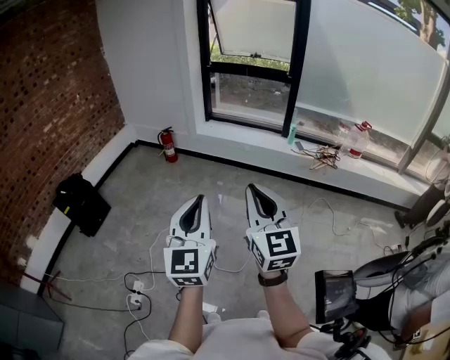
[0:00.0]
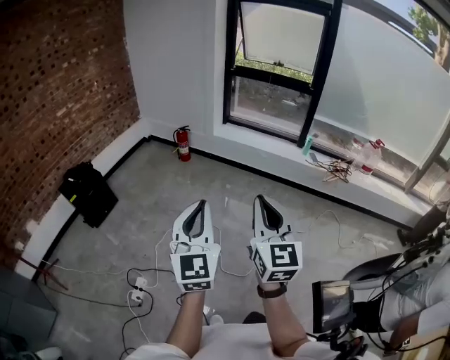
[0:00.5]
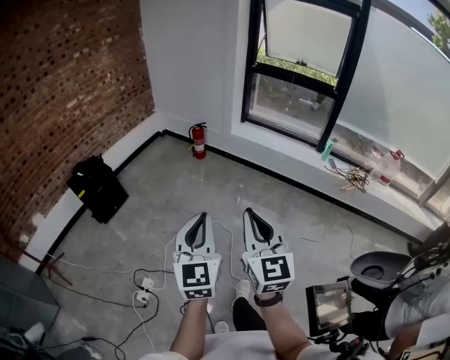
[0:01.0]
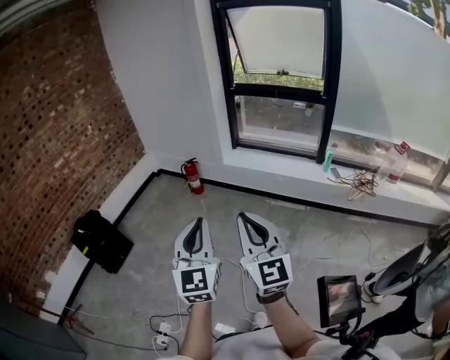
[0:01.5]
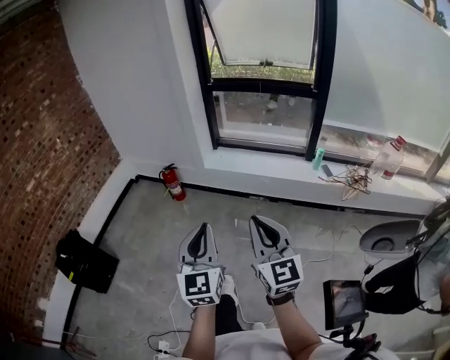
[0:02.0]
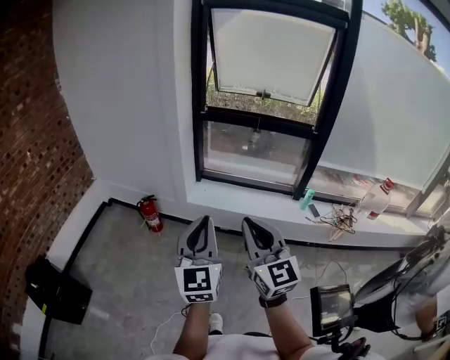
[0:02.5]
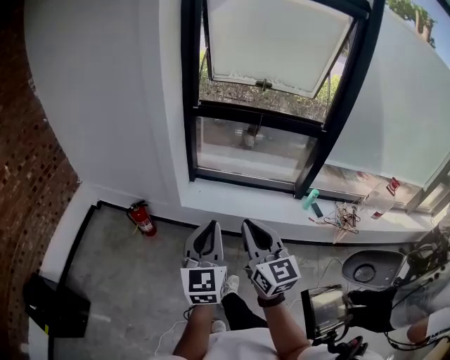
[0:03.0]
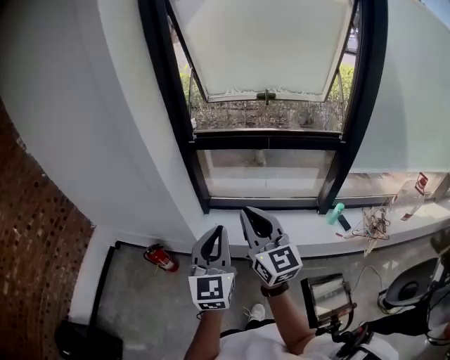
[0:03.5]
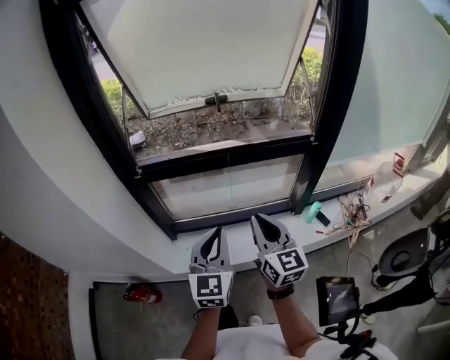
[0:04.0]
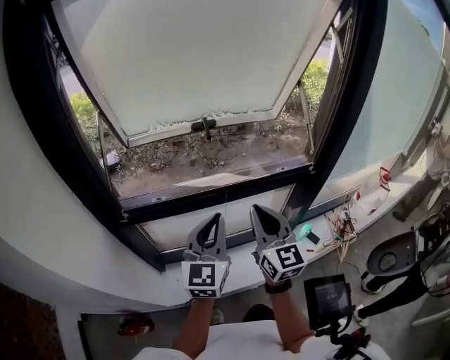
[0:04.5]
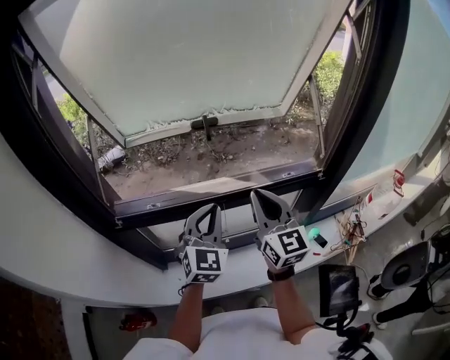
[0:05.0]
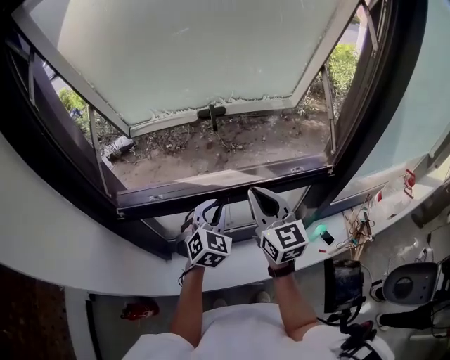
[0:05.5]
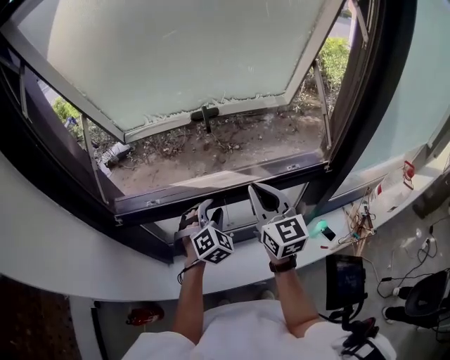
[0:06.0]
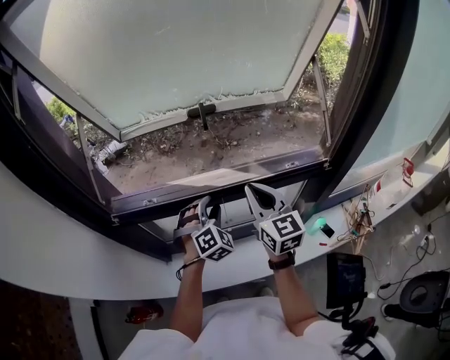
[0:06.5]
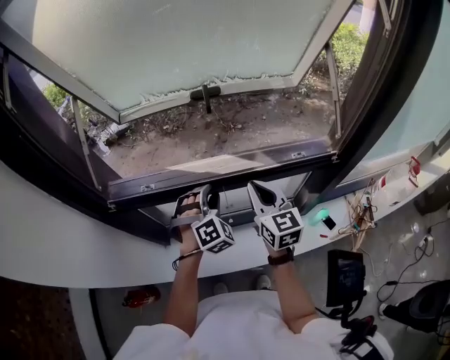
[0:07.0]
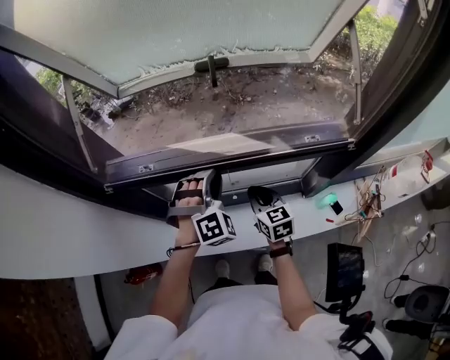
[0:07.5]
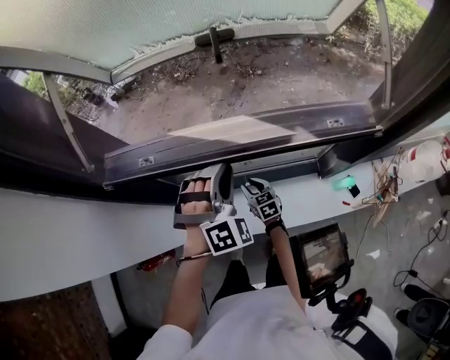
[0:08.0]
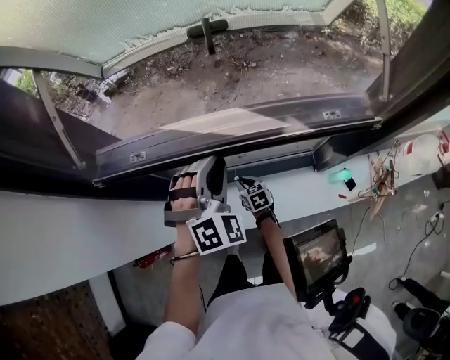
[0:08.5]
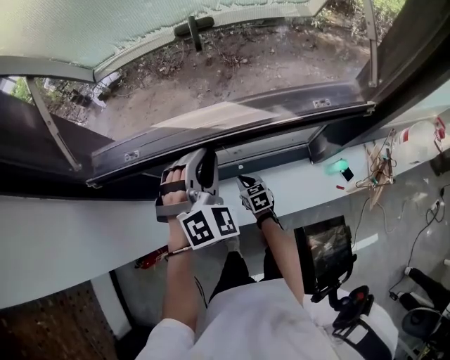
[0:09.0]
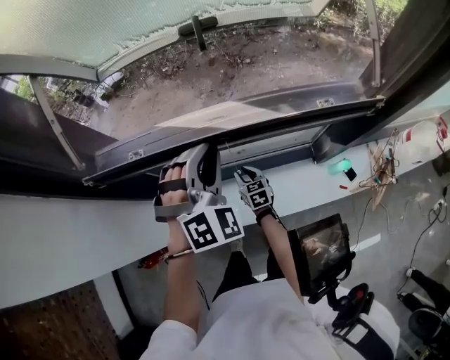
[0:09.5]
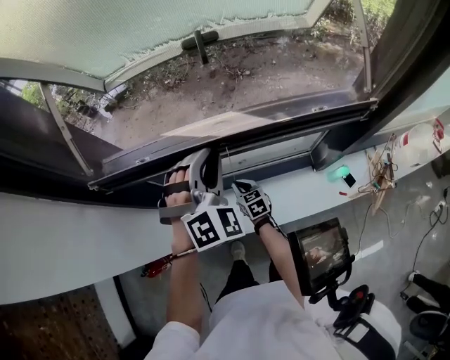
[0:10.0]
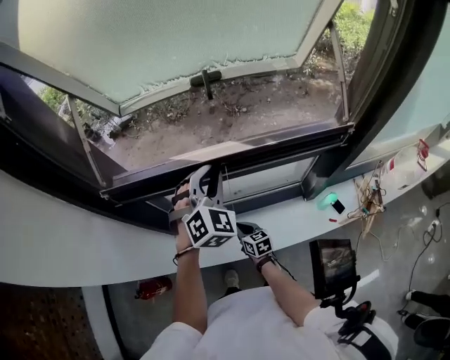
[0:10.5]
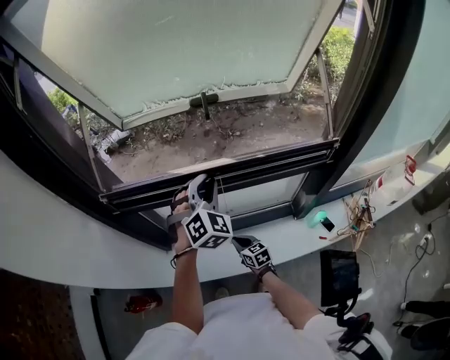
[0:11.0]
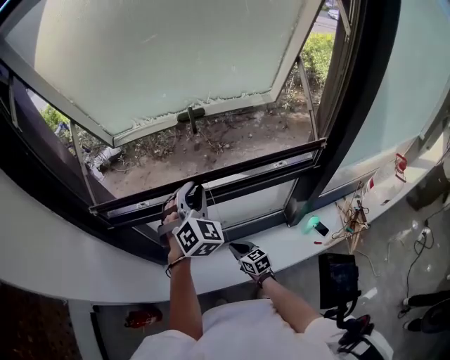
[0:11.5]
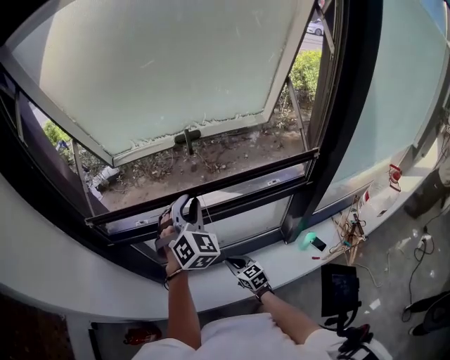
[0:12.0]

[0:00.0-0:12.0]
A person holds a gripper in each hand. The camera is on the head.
0:00.0 to 0:02.0: Both grippers are carried forward, some 50 cm.
0:02.0 to 0:04.0: The pair of grippers is taken some 80 cm. The right gripper rotates about 30 degrees, while the left gripper changes its angle by roughly 30 degrees.
0:04.0 to 0:06.0: The grippers both shift forward by roughly 30 cm. The left gripper rotates around the line of its fingers by about 50 degrees, clockwise from behind, and opens.
0:06.0 to 0:08.0: The right gripper moves downward, some 40 cm, angles its fingers downward, by about 40 degrees, and opens.
0:08.0 to 0:10.0: The right gripper closes. Meanwhile the left gripper shifts some 5 cm upward.
0:10.0 to 0:12.0: The left gripper moves upward, some 10 cm, while the right gripper is displaced backward and upward by approximately 15 cm.

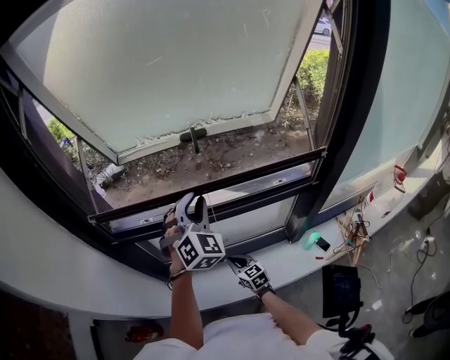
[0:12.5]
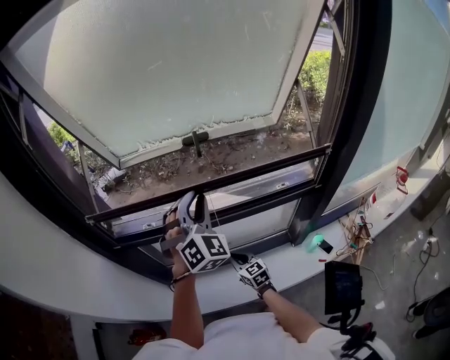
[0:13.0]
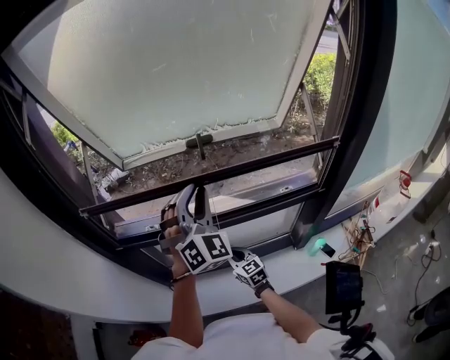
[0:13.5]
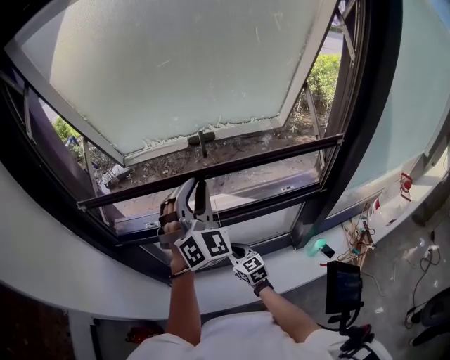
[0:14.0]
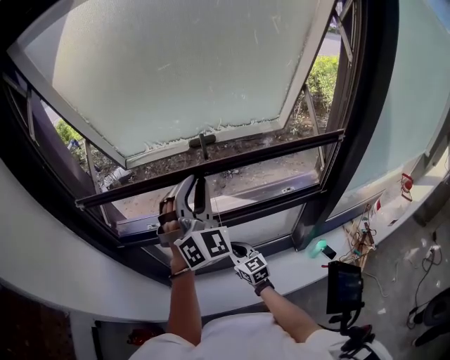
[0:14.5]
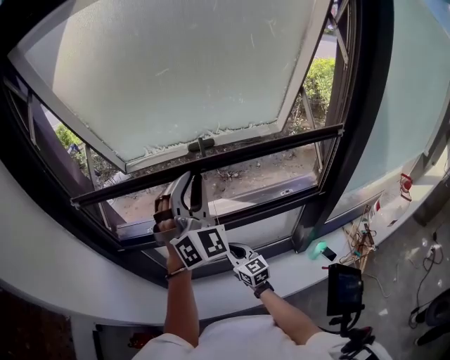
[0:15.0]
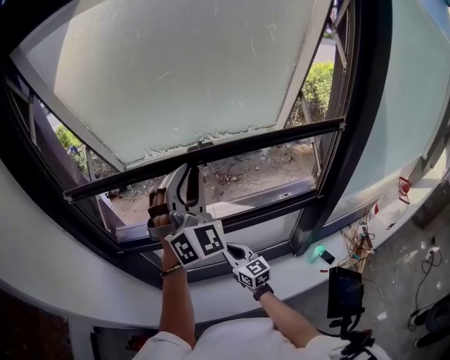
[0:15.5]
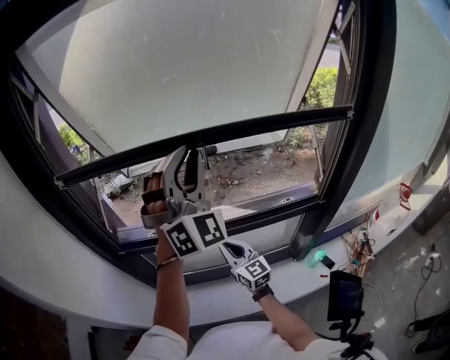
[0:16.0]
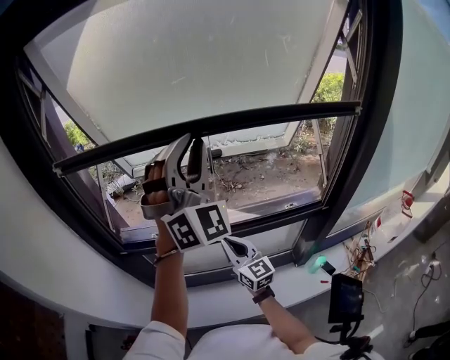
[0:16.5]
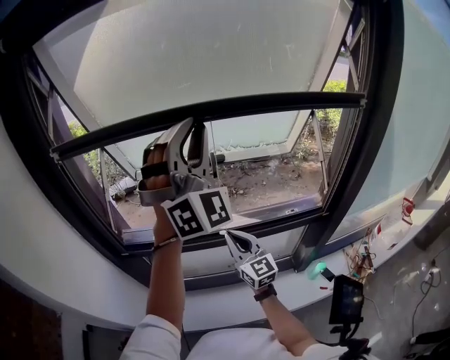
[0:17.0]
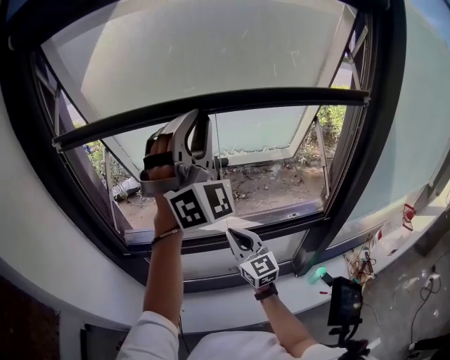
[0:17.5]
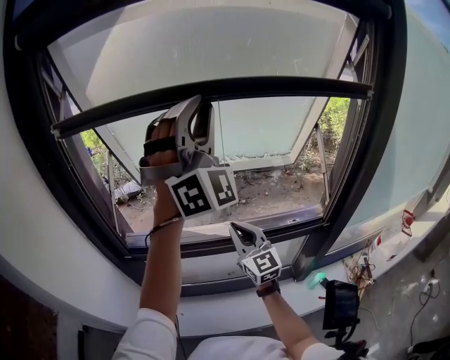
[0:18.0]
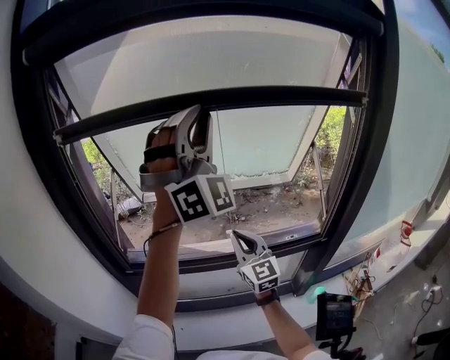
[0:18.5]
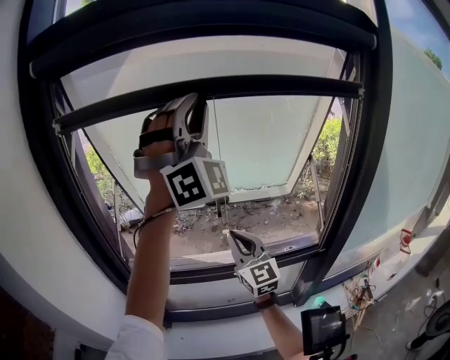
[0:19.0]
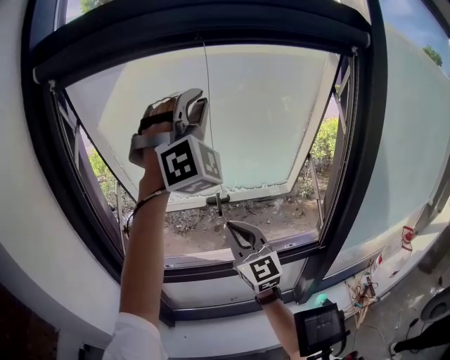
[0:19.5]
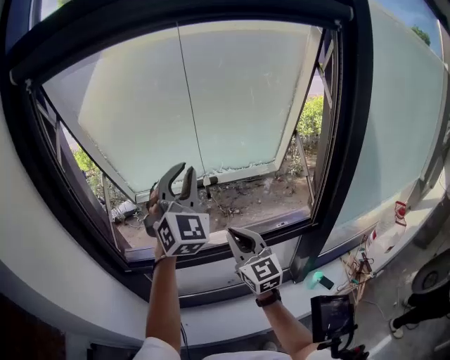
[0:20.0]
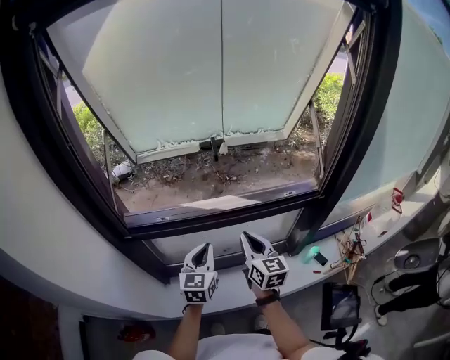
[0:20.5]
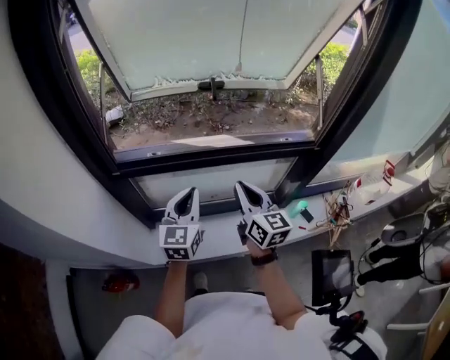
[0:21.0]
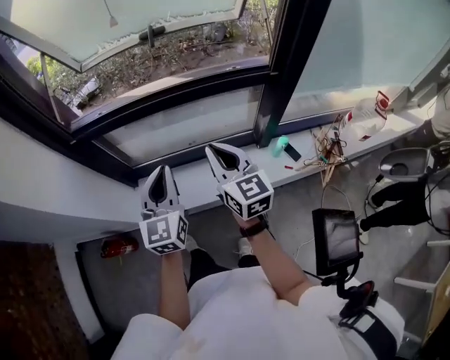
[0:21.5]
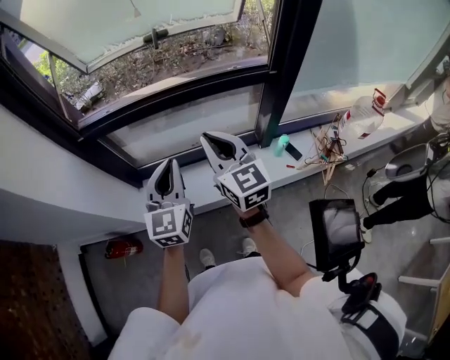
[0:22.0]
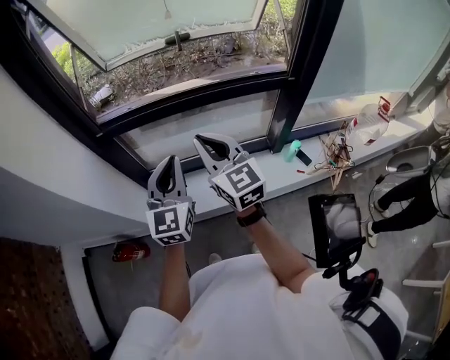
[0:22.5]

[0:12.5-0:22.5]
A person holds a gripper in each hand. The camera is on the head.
0:12.5 to 0:14.5: The right gripper moves upward and forward, roughly 10 cm, while the left gripper is displaced upward by some 10 cm.
0:14.5 to 0:16.5: Both grippers move upward, approximately 15 cm.
0:16.5 to 0:18.5: The grippers both shift upward by roughly 15 cm.
0:18.5 to 0:20.5: The left gripper is displaced downward by about 50 cm, and rotates around the line of its fingers by approximately 70 degrees, counterclockwise from behind. Meanwhile the right gripper heads downward and backward, covering roughly 15 cm, and turns by approximately 30 degrees.
0:20.5 to 0:22.5: Both grippers travel together backward, some 20 cm. The right gripper turns by some 20 degrees.

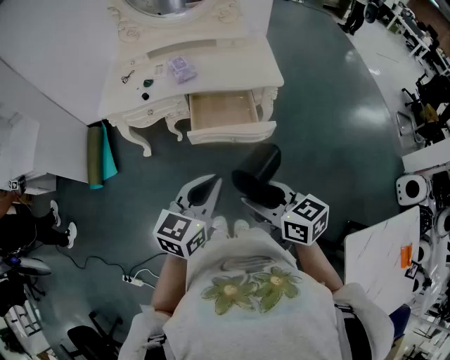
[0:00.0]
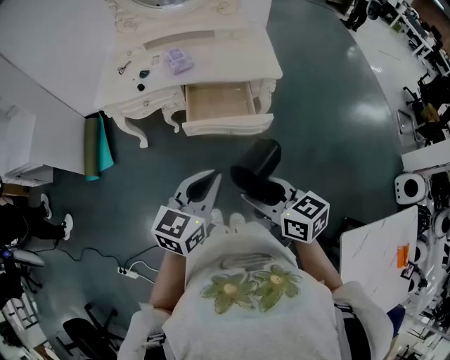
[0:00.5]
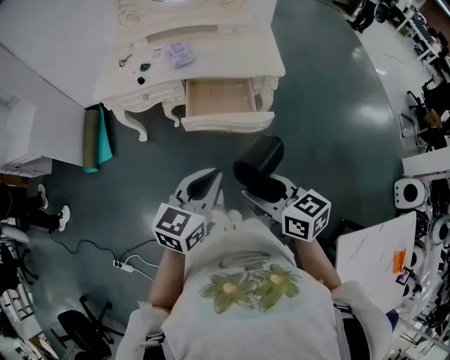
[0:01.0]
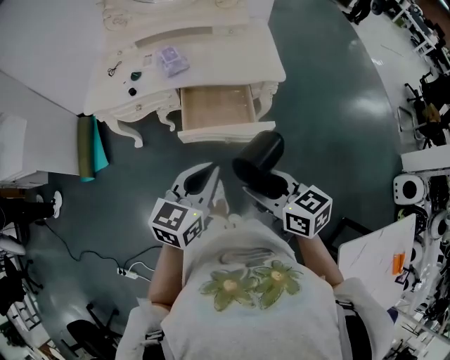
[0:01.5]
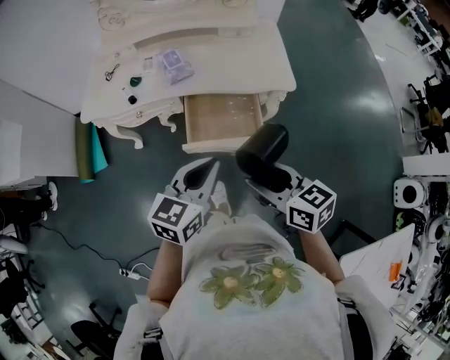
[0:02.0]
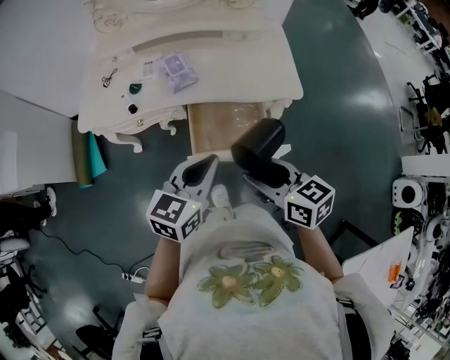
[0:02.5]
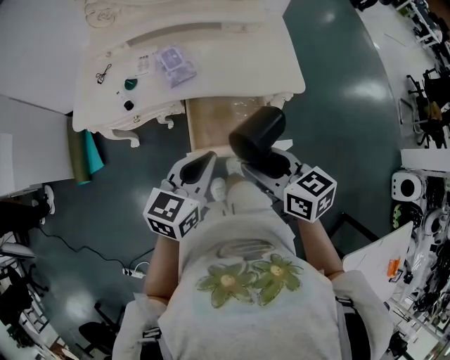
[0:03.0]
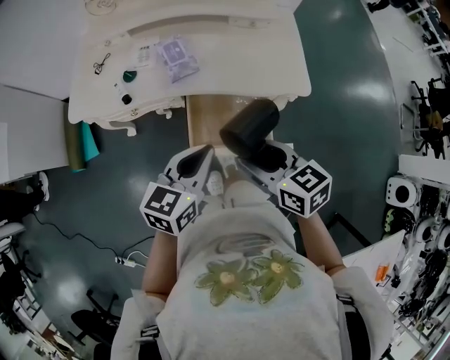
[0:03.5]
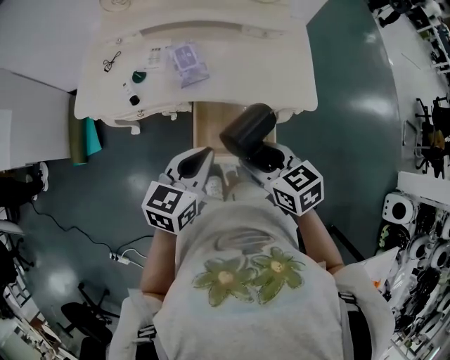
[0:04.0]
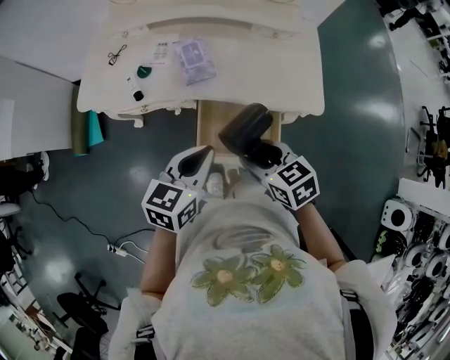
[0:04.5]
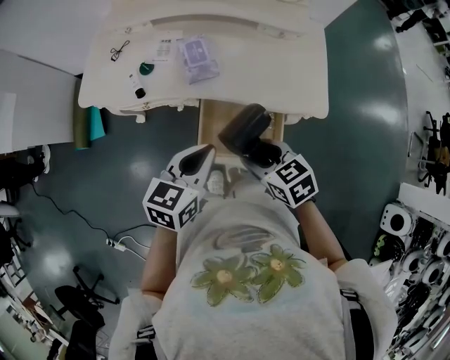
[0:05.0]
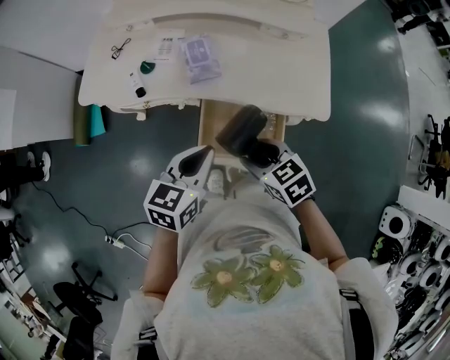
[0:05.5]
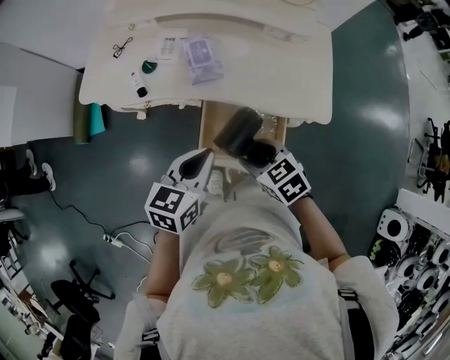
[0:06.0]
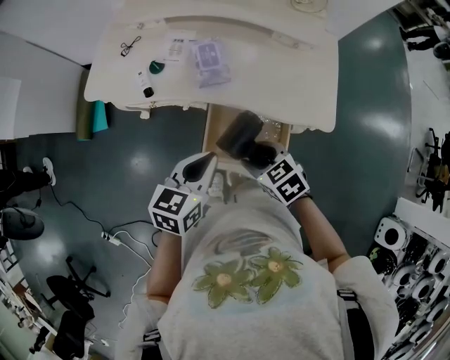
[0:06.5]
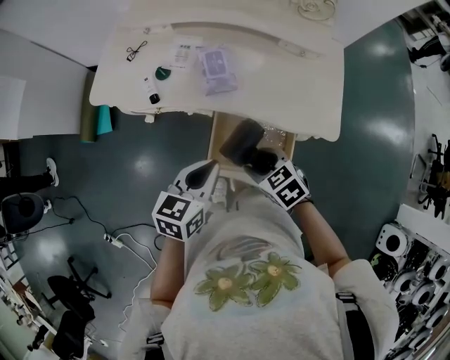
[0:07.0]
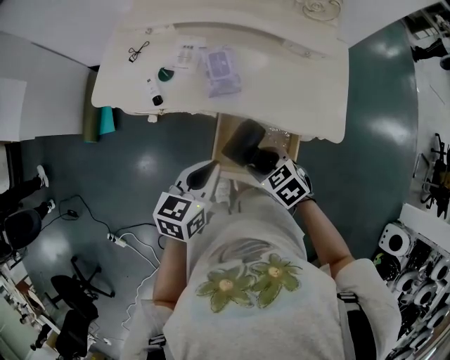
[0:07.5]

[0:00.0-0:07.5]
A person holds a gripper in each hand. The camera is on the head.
0:00.0 to 0:02.0: The grippers both shift forward by roughly 15 cm.
0:02.0 to 0:04.0: The two grippers go approximately 15 cm forward.
0:04.0 to 0:05.5: The right gripper is displaced downward by about 5 cm.
0:05.5 to 0:07.5: The right gripper goes some 5 cm downward.
